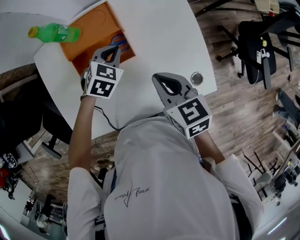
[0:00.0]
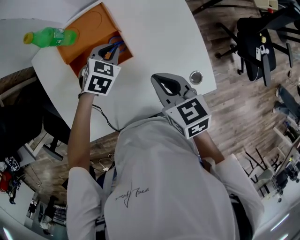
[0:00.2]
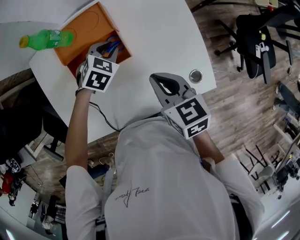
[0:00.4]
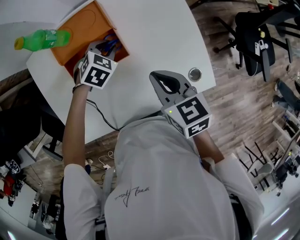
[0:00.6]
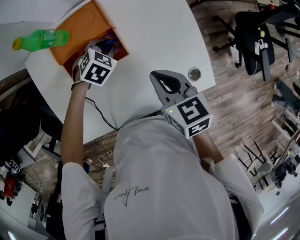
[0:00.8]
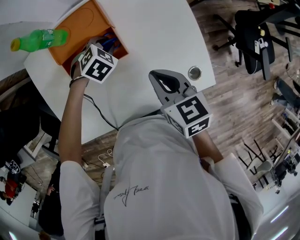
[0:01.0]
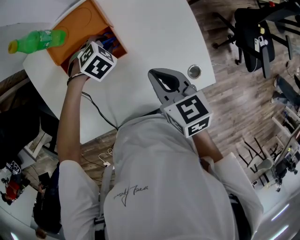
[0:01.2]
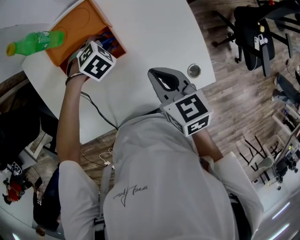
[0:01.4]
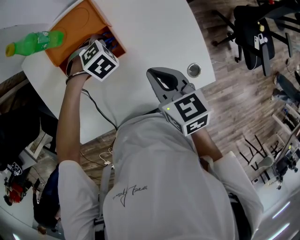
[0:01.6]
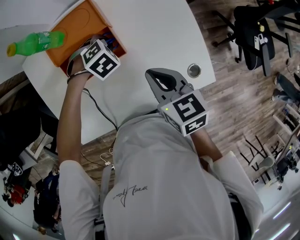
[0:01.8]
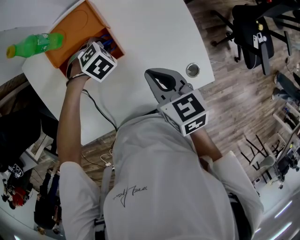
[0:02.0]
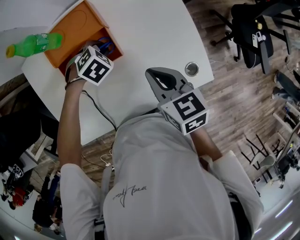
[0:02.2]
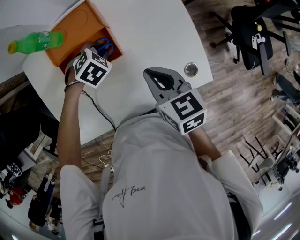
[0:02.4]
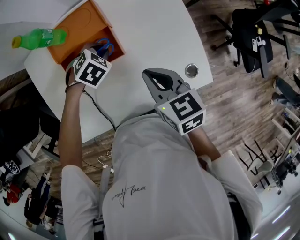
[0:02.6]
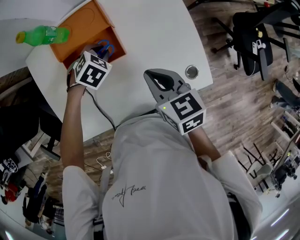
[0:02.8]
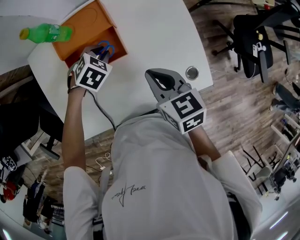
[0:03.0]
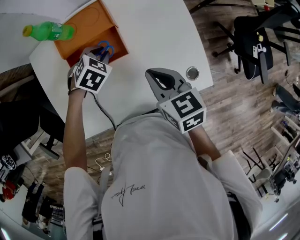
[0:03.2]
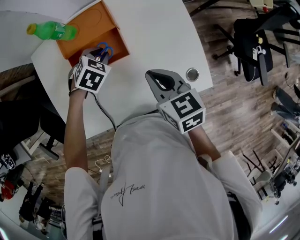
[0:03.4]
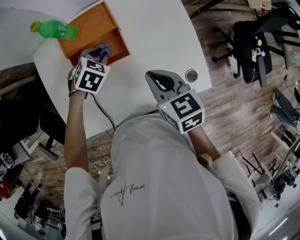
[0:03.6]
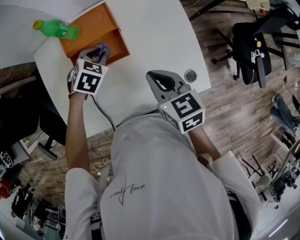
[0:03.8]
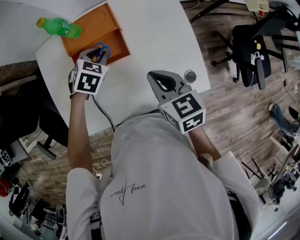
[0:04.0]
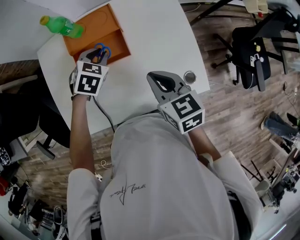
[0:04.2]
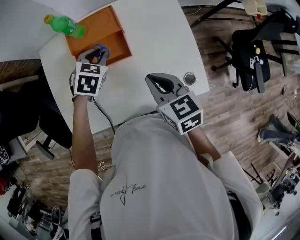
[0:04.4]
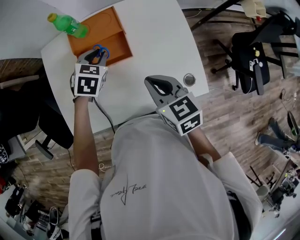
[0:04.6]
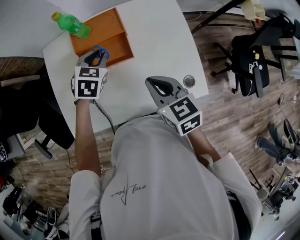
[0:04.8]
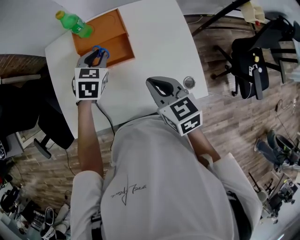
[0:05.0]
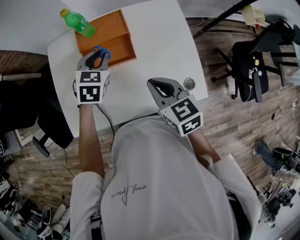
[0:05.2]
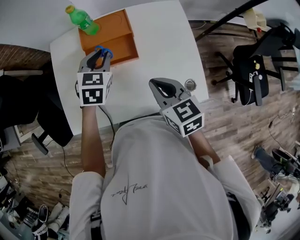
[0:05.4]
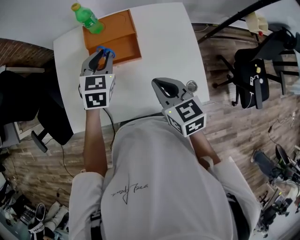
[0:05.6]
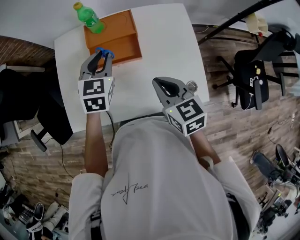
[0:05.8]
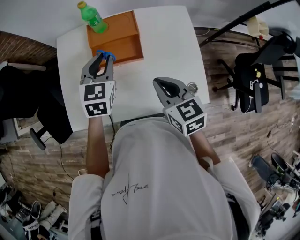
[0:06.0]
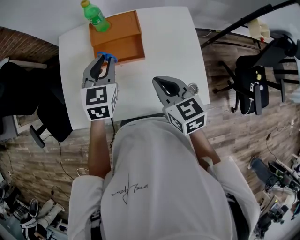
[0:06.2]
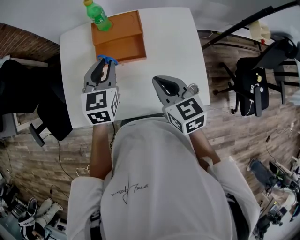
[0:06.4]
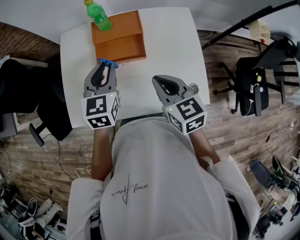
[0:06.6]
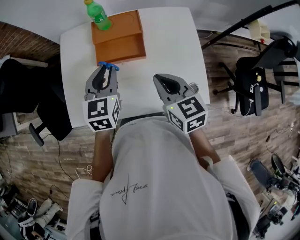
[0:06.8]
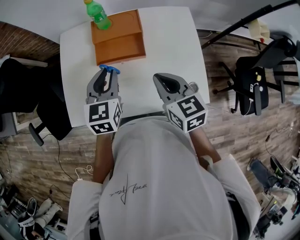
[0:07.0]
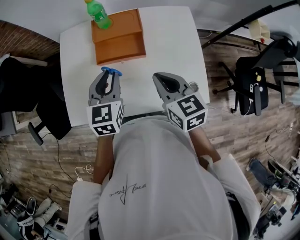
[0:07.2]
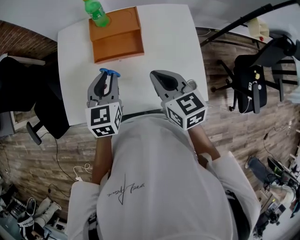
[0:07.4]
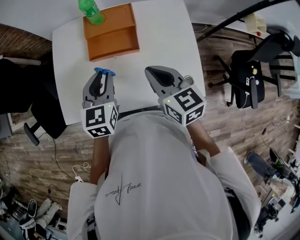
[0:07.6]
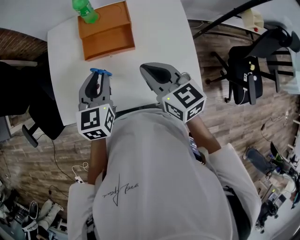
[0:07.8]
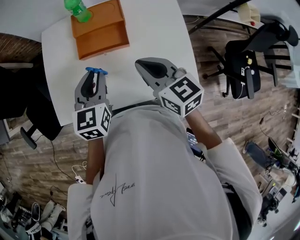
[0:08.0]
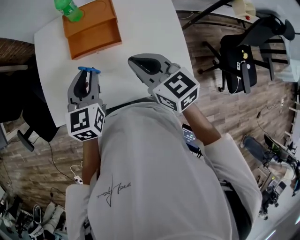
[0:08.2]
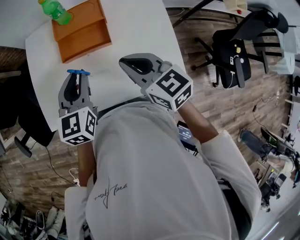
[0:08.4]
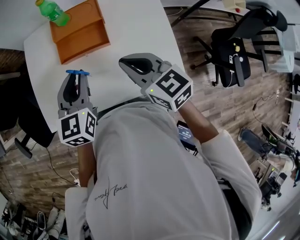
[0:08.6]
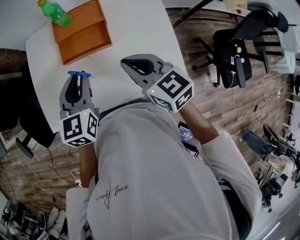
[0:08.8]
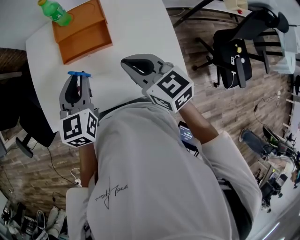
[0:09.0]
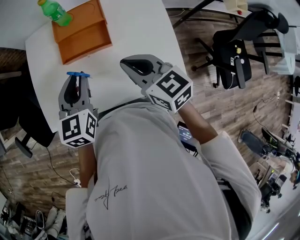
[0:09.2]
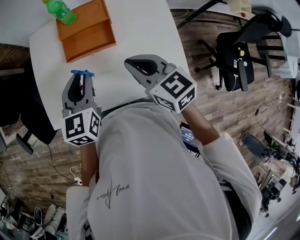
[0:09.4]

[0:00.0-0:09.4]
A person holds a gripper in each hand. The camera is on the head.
0.0 to 1.6 s: The left gripper goes some 5 cm downward, rotates some 30 degrees, and opens up.
1.6 to 3.2 s: The left gripper moves approximately 5 cm.
3.2 to 4.8 s: The left gripper travels upward by about 10 cm, and swivels roughly 30 degrees. Meanwhile the right gripper shifts by about 5 cm.
4.8 to 6.2 s: The left gripper heads upward and backward, covering about 10 cm, and turns by roughly 30 degrees.
6.2 to 7.8 s: The left gripper goes some 10 cm backward.
7.8 to 9.4 s: The grippers stay close to where they were, moving slightly.

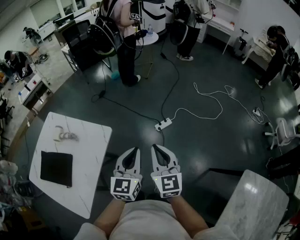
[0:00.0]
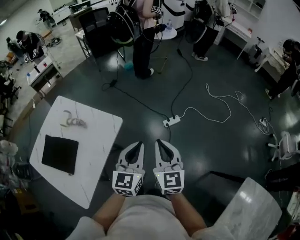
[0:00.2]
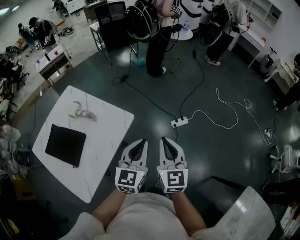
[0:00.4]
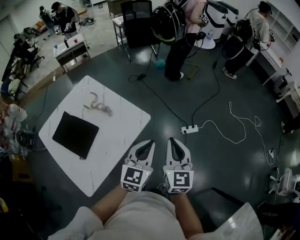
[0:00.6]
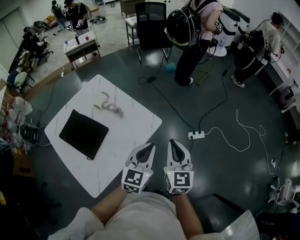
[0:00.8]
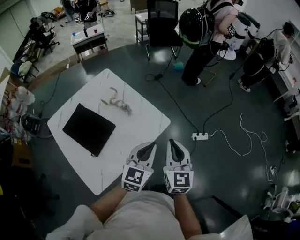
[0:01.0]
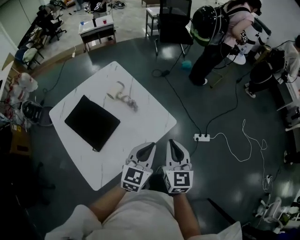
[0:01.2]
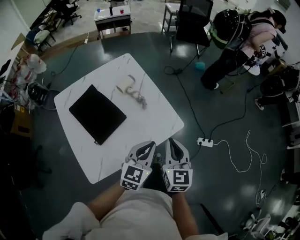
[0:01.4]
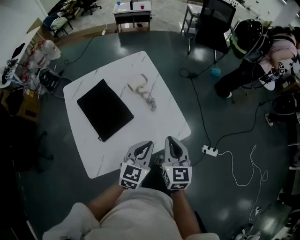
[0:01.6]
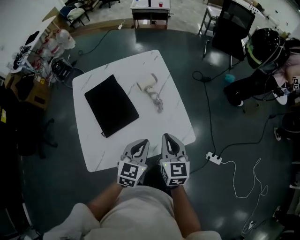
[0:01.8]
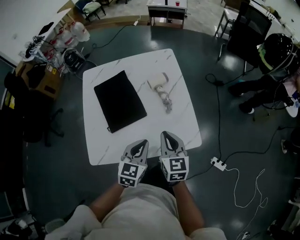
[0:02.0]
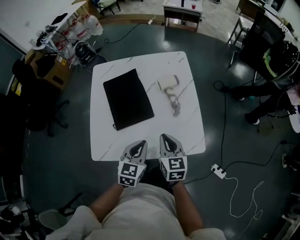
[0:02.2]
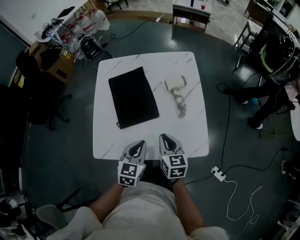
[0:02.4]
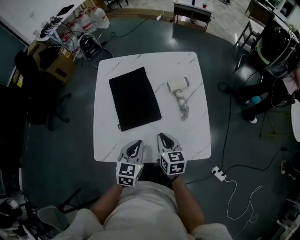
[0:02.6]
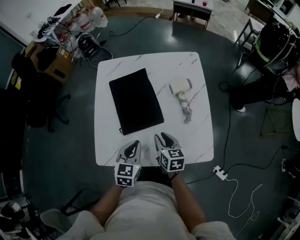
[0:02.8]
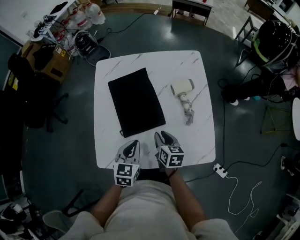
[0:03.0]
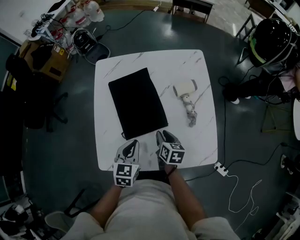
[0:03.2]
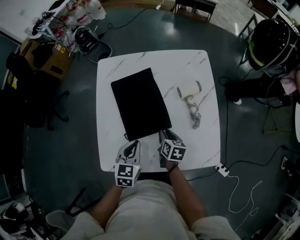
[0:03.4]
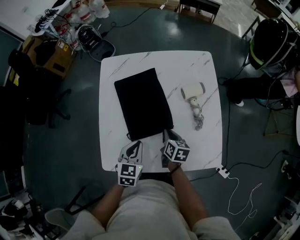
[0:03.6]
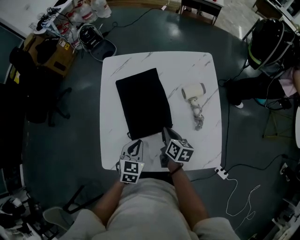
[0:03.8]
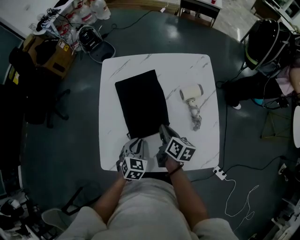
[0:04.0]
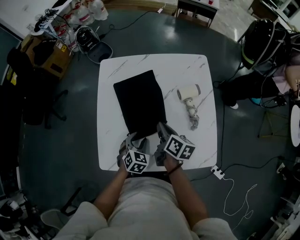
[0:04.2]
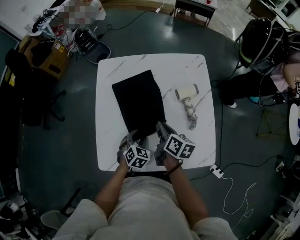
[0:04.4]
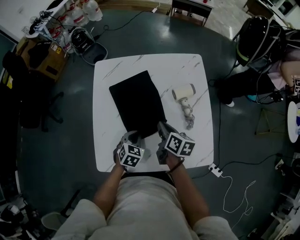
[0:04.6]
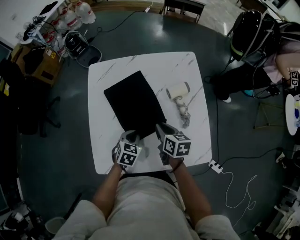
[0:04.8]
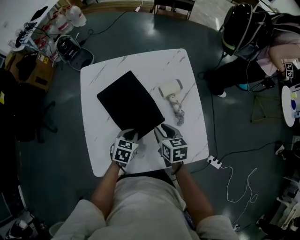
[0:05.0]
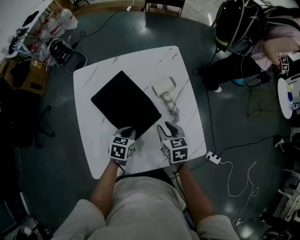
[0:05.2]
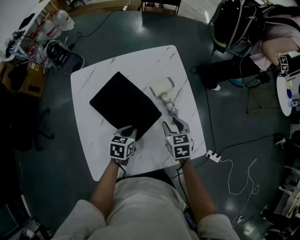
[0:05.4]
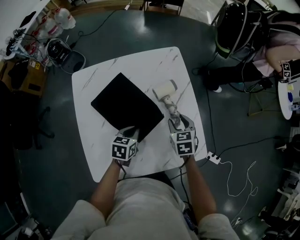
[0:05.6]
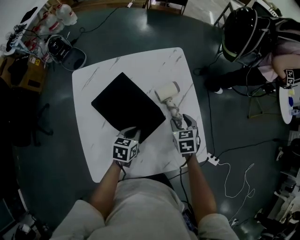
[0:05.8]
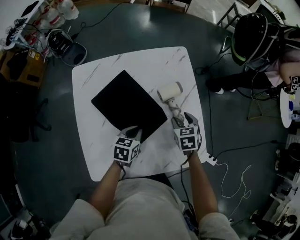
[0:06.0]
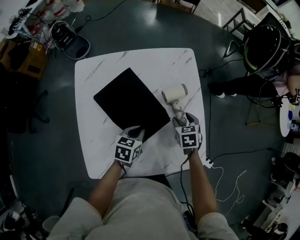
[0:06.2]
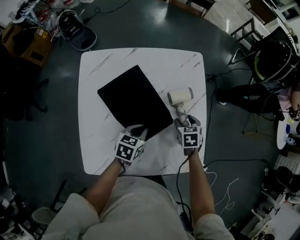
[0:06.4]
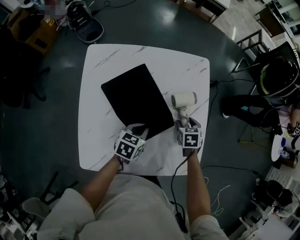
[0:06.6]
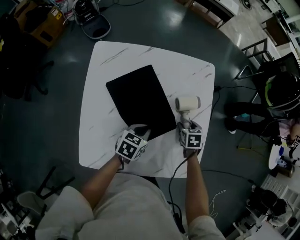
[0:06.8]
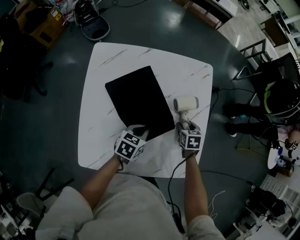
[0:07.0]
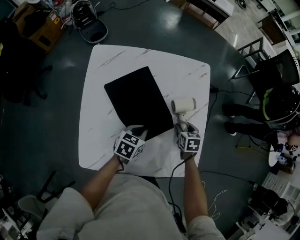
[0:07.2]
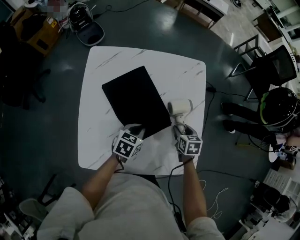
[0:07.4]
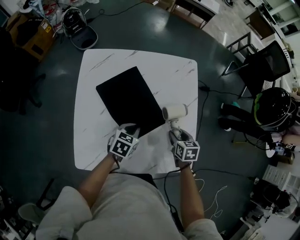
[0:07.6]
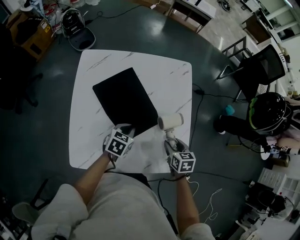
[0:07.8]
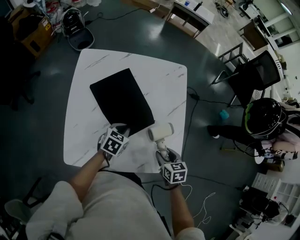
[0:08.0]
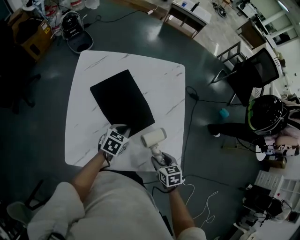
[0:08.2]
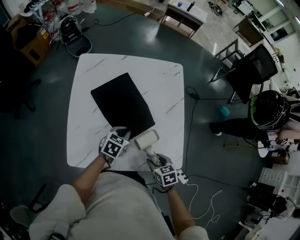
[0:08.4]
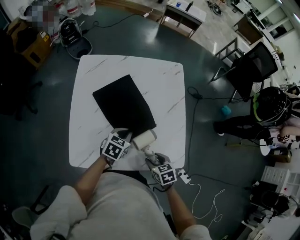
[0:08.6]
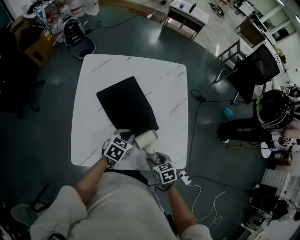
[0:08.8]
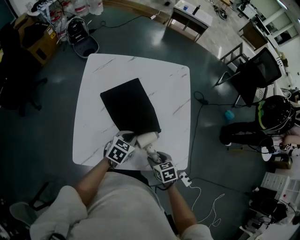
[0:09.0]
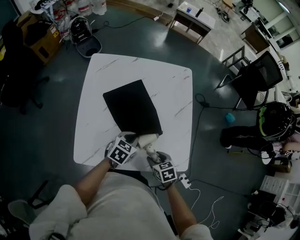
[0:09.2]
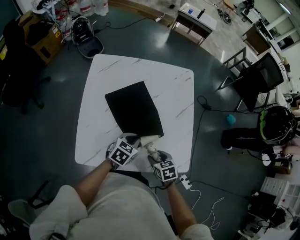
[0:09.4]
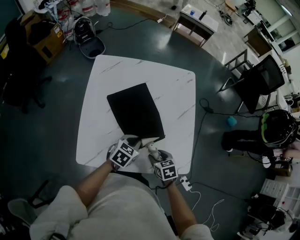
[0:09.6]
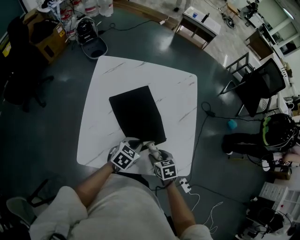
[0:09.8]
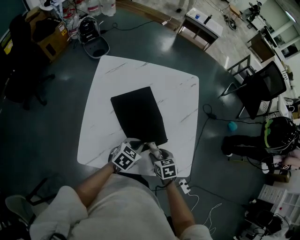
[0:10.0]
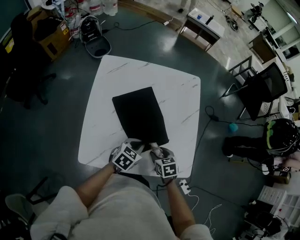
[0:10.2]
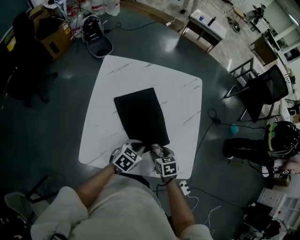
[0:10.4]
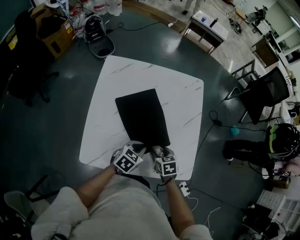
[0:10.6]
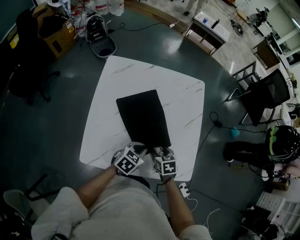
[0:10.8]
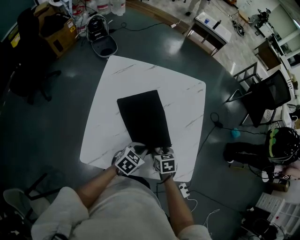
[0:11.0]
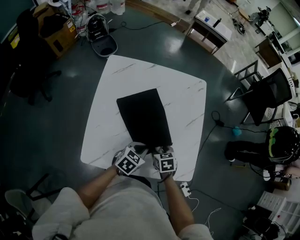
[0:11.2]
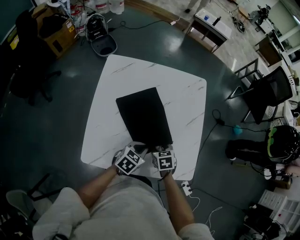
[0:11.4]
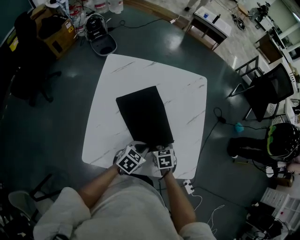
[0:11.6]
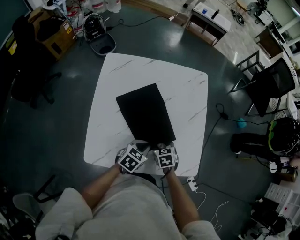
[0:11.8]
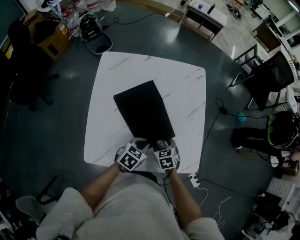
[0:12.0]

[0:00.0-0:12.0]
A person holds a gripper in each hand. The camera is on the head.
0.0 to 1.6 s: The right gripper changes place by some 40 cm, and swivels roughly 40 degrees. Meanwhile the left gripper changes place by approximately 40 cm, and turns by about 30 degrees.
1.6 to 3.0 s: The right gripper ends up some 25 cm from where it was, rotates roughly 40 degrees, and opens its fingers; the left gripper changes place by roughly 20 cm, and turns by approximately 40 degrees.
3.0 to 4.4 s: The right gripper heads forward and upward, covering approximately 10 cm, and turns by roughly 20 degrees; the left gripper goes about 10 cm downward, changes its angle by about 30 degrees, and opens up.
4.4 to 6.0 s: The right gripper ends up approximately 20 cm from where it was, rolls counterclockwise, seen from behind, by approximately 40 degrees, and opens. Meanwhile the left gripper shifts by roughly 10 cm, swivels roughly 40 degrees, and closes its fingers.
7.6 to 9.0 s: The right gripper travels backward by approximately 15 cm; the left gripper goes approximately 5 cm backward.
9.0 to 10.4 s: The right gripper shifts approximately 5 cm forward.
10.4 to 12.0 s: The grippers stay close to where they were, moving slightly.

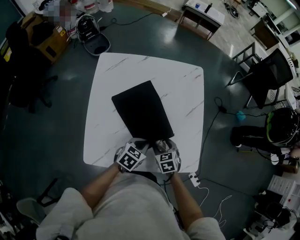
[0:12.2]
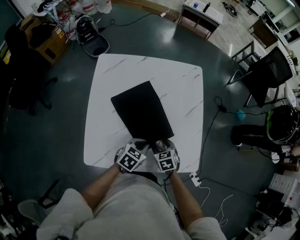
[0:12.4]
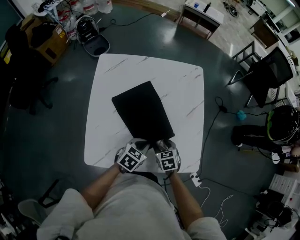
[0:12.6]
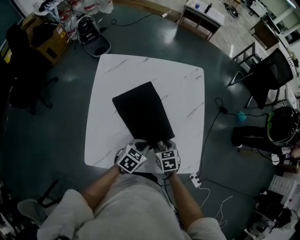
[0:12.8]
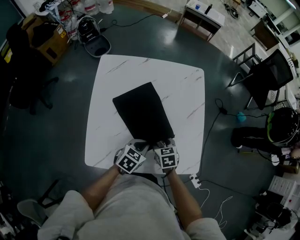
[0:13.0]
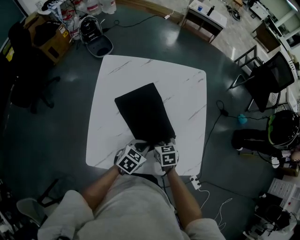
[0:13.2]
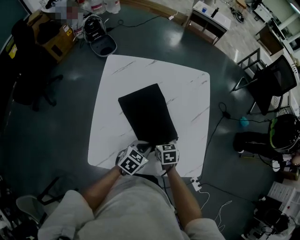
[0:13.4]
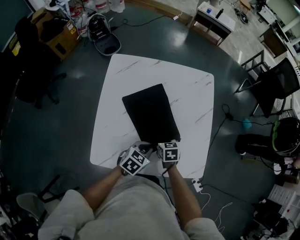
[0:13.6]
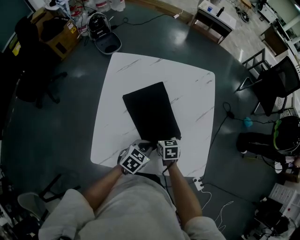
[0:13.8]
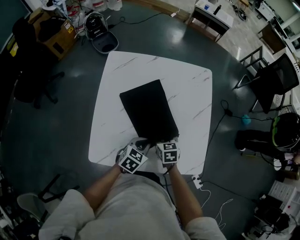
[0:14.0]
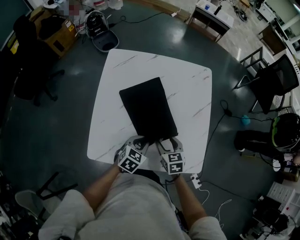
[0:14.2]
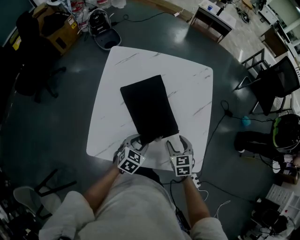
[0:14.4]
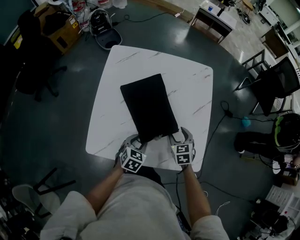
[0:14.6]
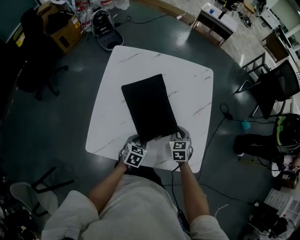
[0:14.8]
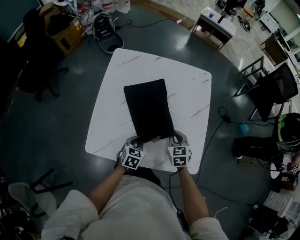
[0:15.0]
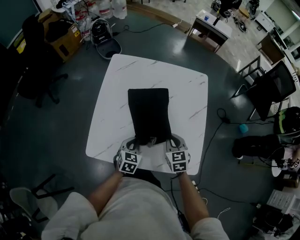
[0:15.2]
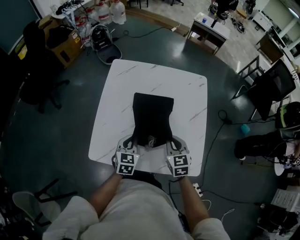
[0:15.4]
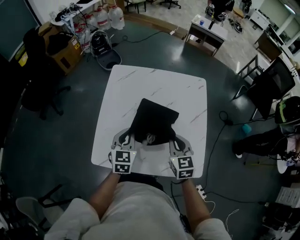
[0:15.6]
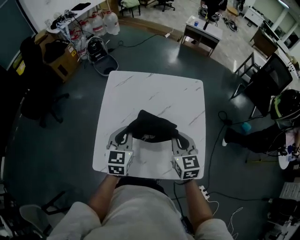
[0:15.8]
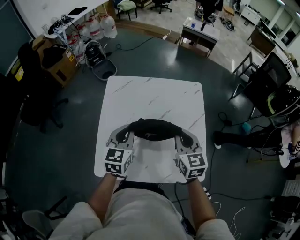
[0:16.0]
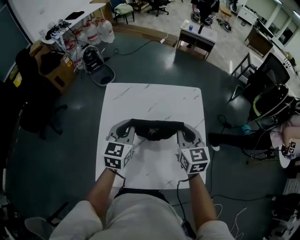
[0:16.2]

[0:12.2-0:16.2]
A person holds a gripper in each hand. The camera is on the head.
12.2 to 13.6 s: The right gripper is displaced to the left and forward by roughly 10 cm.
13.6 to 14.8 s: The left gripper shifts roughly 5 cm downward, swivels approximately 20 degrees, and opens. The right gripper travels to the right by approximately 10 cm, changes its angle by some 20 degrees, and closes its fingers.
14.8 to 16.2 s: The left gripper goes roughly 35 cm upward and forward, tips its fingers upward by about 30 degrees, and closes, while the right gripper moves upward, some 25 cm, and changes its angle by about 30 degrees.
